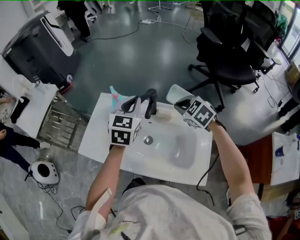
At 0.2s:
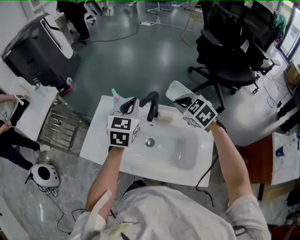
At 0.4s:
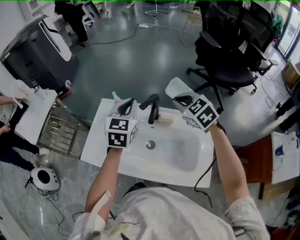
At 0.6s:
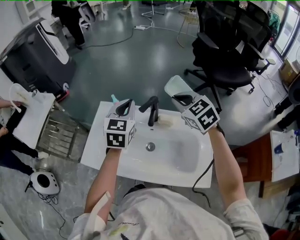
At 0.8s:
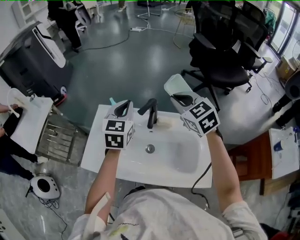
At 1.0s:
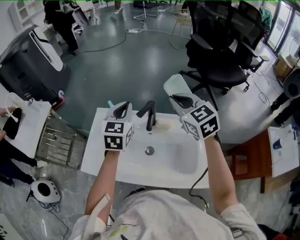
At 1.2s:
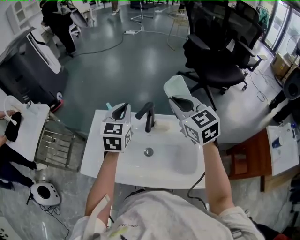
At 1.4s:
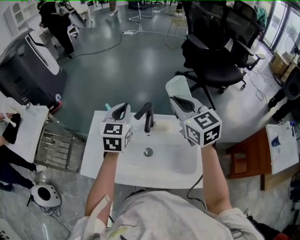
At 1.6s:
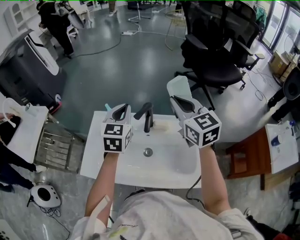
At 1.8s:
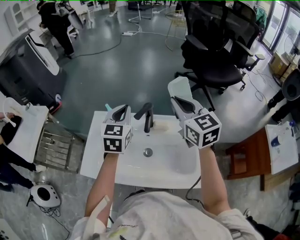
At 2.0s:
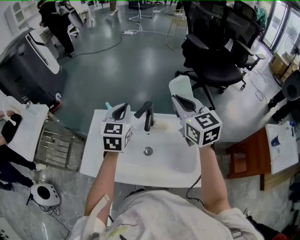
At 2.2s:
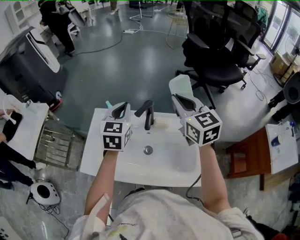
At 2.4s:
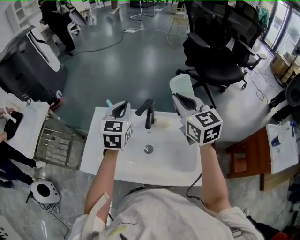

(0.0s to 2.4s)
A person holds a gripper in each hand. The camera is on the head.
0.0s - 1.2s: The right gripper goes roughly 15 cm upward, and points its fingers about 30 degrees further upward. The left gripper moves some 5 cm.
1.2s - 2.4s: The grippers stay close to where they were, moving slightly.

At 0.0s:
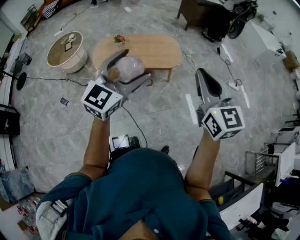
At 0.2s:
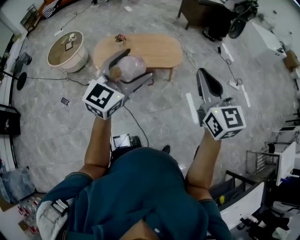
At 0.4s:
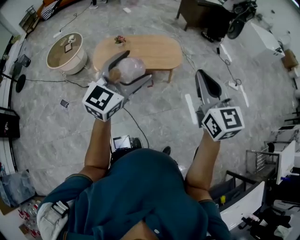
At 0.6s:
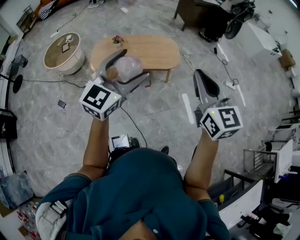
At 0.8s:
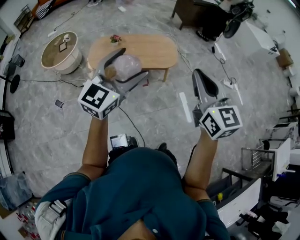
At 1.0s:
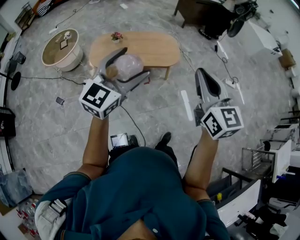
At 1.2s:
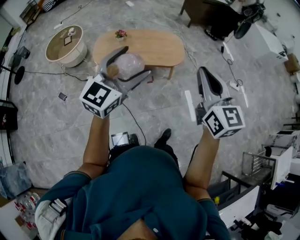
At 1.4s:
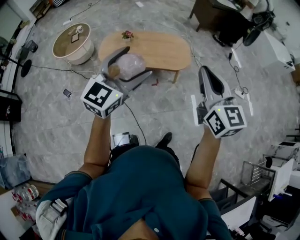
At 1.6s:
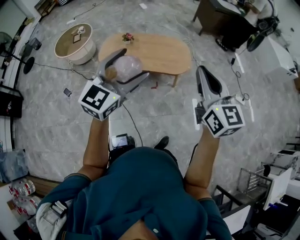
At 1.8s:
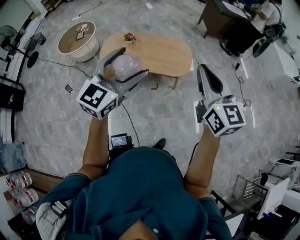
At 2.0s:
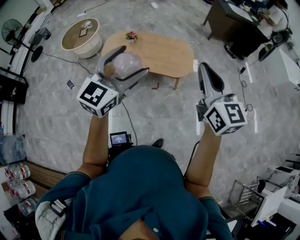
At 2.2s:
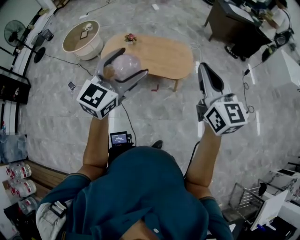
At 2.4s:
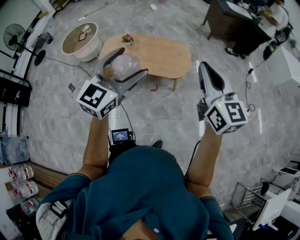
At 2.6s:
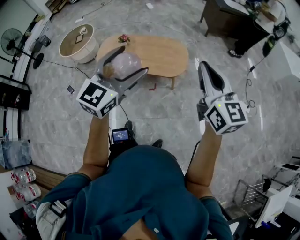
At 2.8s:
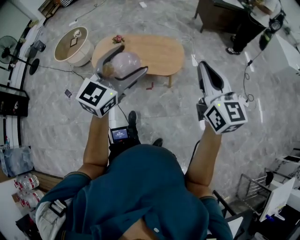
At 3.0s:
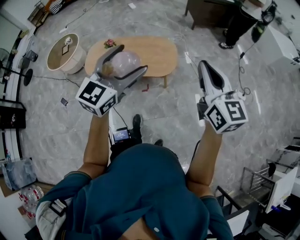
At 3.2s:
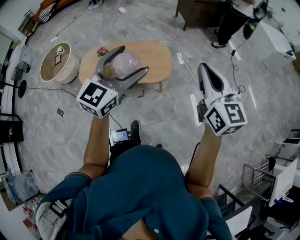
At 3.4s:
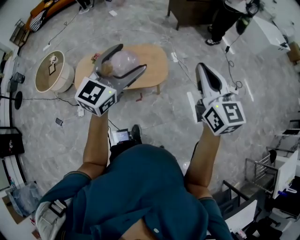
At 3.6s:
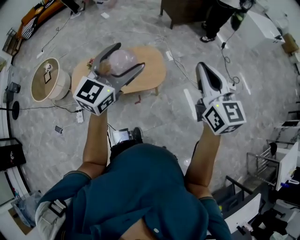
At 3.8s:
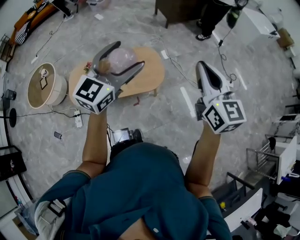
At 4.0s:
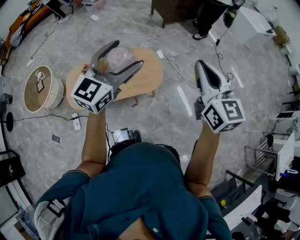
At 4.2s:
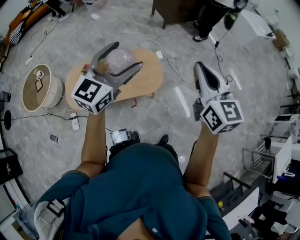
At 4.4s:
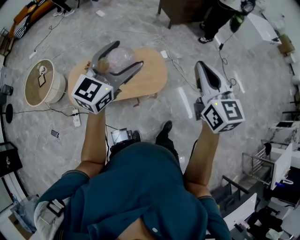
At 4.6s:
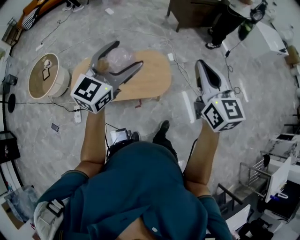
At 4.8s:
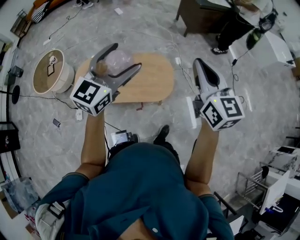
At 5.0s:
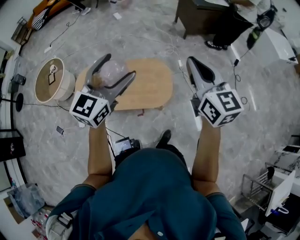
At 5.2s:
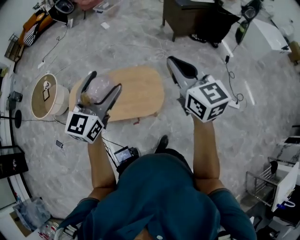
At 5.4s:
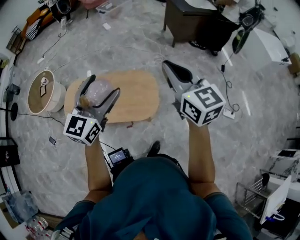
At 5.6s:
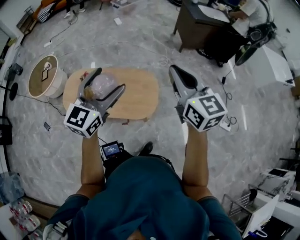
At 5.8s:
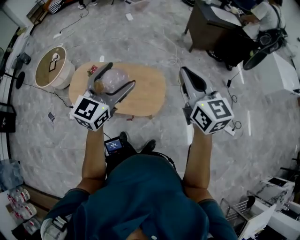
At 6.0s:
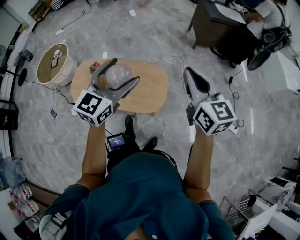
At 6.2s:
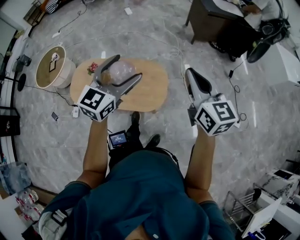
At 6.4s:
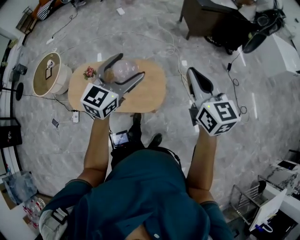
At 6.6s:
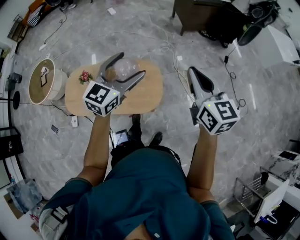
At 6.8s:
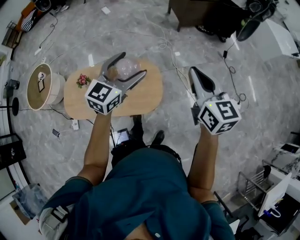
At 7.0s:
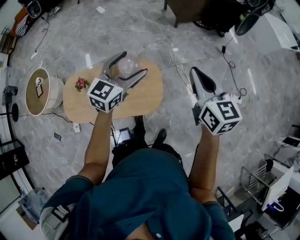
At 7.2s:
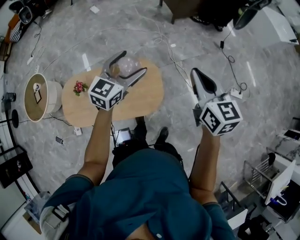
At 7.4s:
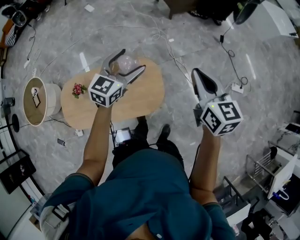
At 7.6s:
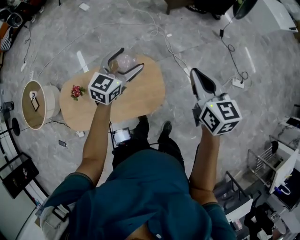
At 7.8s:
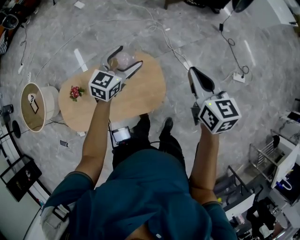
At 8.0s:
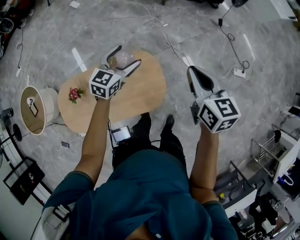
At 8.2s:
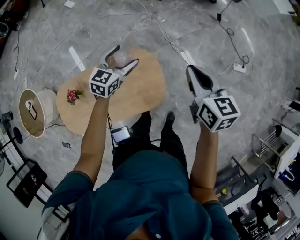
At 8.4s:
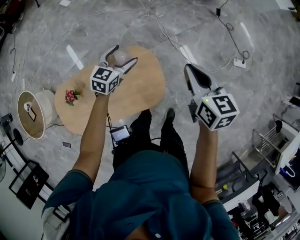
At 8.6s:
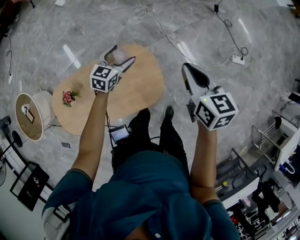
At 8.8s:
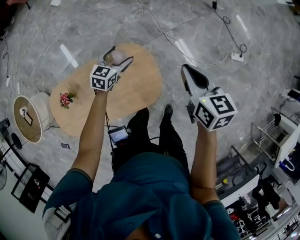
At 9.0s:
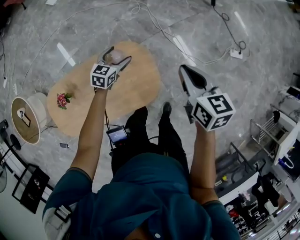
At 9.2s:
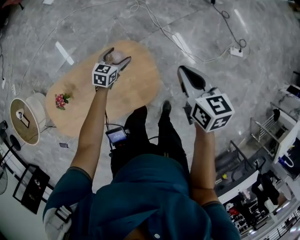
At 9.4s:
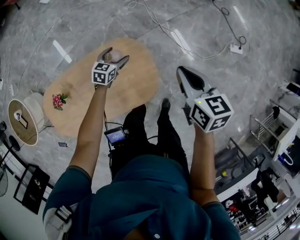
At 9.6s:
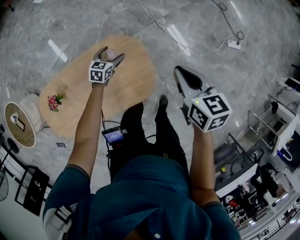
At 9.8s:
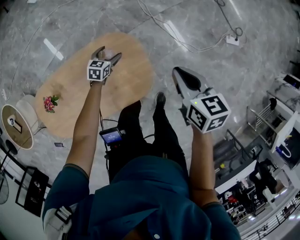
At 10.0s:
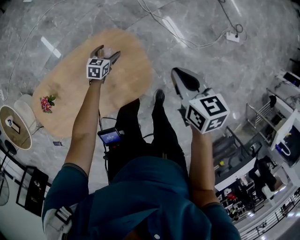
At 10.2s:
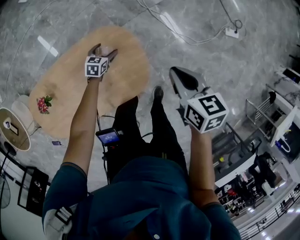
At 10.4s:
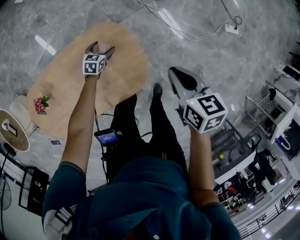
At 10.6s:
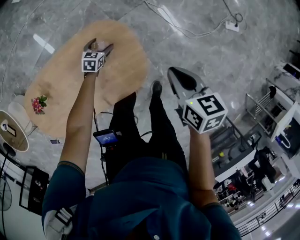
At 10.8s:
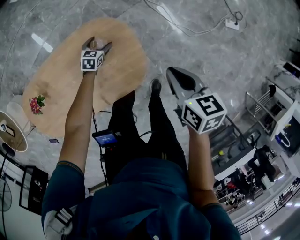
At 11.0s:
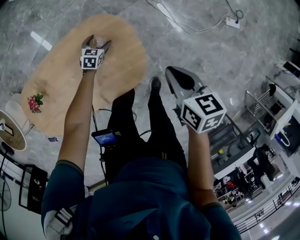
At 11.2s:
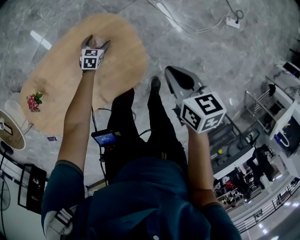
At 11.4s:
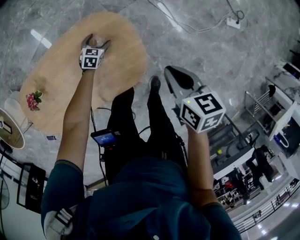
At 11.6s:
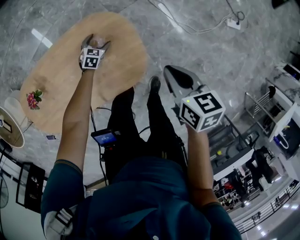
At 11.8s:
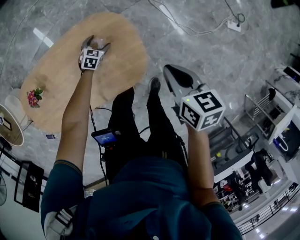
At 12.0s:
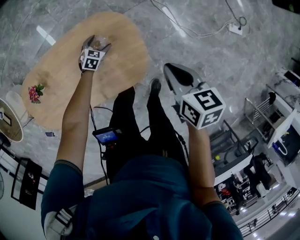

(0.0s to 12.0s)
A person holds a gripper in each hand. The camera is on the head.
0.0s - 1.6s: Both grippers travel together forward, approximately 10 cm.
1.6s - 3.0s: Both grippers move to the right and forward, roughly 20 cm.
3.0s - 4.4s: The grippers both shift forward and to the left by roughly 20 cm.
4.4s - 6.0s: Both grippers move forward and to the right, approximately 15 cm. The left gripper changes its angle by some 20 degrees. Meanwhile the right gripper rotates some 20 degrees.
6.0s - 7.6s: The left gripper travels forward and downward by roughly 30 cm, and swivels about 30 degrees; the right gripper moves downward and forward, about 15 cm, and swivels some 30 degrees.
7.6s - 9.0s: The left gripper moves downward, about 25 cm, while the right gripper travels downward by roughly 15 cm.
9.0s - 10.4s: The left gripper heads downward, covering roughly 25 cm, while the right gripper goes approximately 15 cm downward.
10.4s - 12.0s: The grippers make only small movements.

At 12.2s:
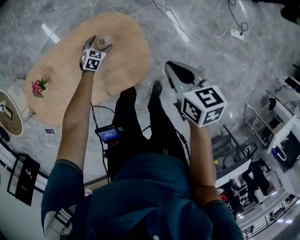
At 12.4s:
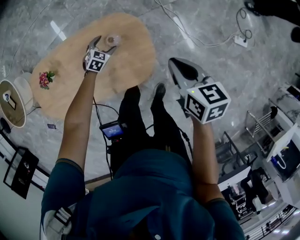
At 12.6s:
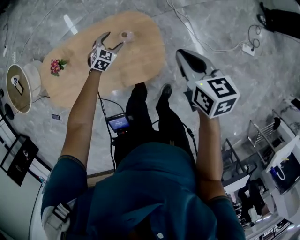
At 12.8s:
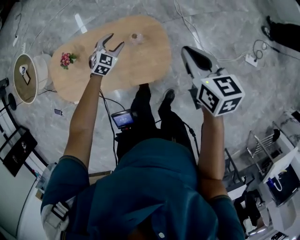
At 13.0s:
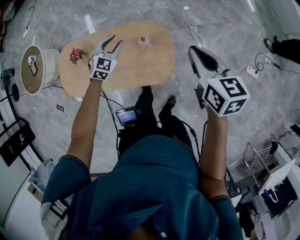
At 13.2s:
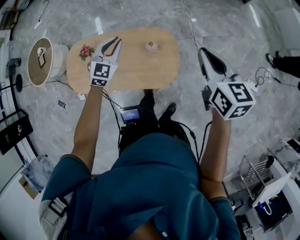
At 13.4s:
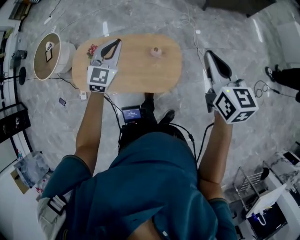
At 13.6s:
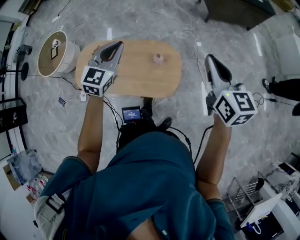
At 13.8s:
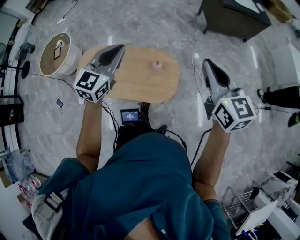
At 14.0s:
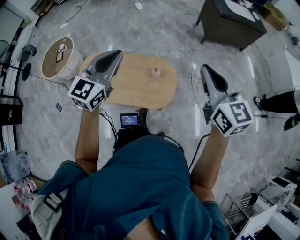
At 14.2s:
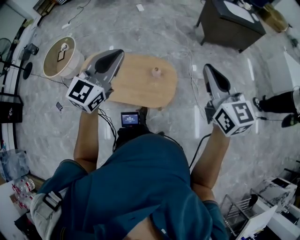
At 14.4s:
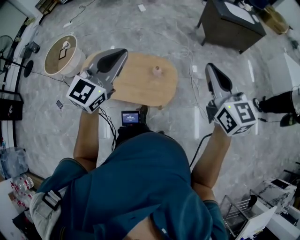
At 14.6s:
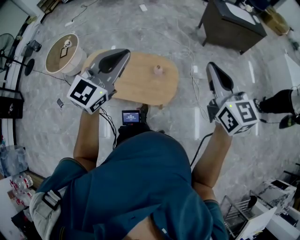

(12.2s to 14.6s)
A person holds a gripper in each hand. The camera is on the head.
12.2s - 13.4s: The right gripper travels upward by approximately 30 cm, and turns by approximately 30 degrees. The left gripper travels upward by approximately 50 cm, points its fingers approximately 40 degrees further upward, and closes.
13.4s - 14.6s: The left gripper travels upward and backward by about 30 cm, and rotates roughly 20 degrees. The right gripper heads upward and backward, covering some 20 cm, and rotates roughly 20 degrees.

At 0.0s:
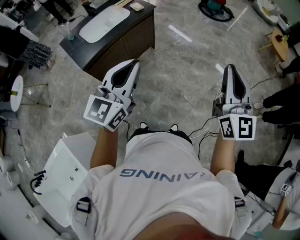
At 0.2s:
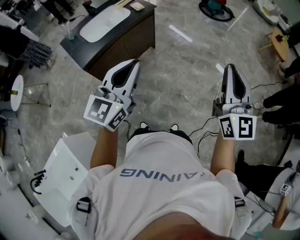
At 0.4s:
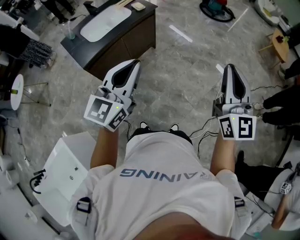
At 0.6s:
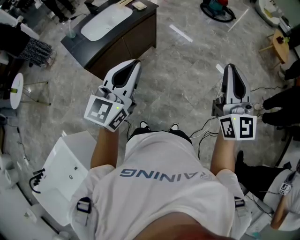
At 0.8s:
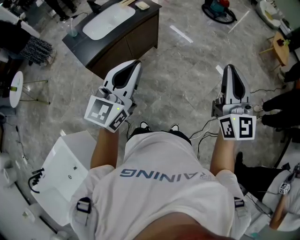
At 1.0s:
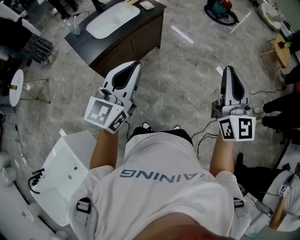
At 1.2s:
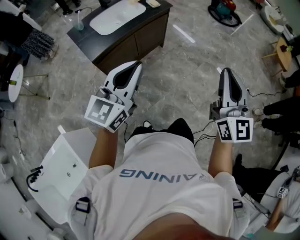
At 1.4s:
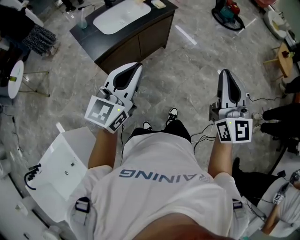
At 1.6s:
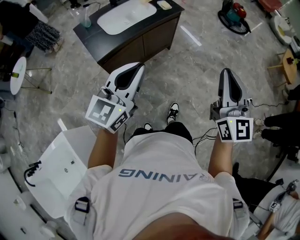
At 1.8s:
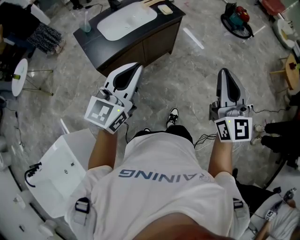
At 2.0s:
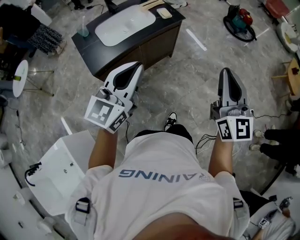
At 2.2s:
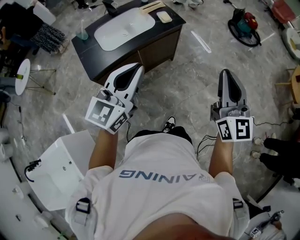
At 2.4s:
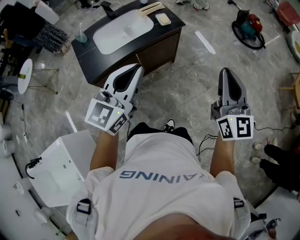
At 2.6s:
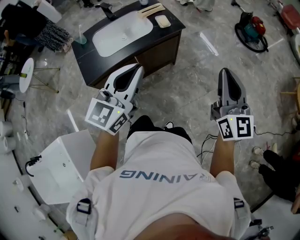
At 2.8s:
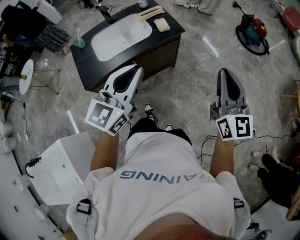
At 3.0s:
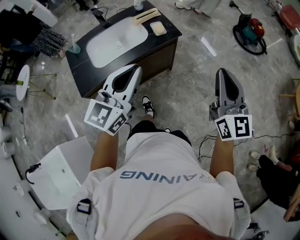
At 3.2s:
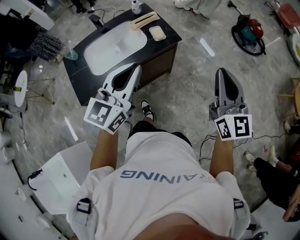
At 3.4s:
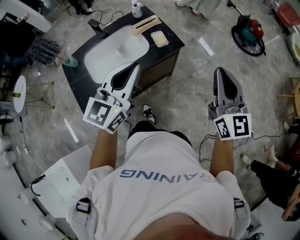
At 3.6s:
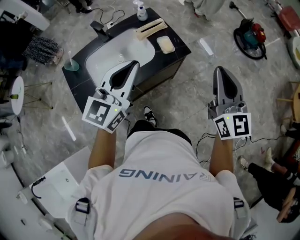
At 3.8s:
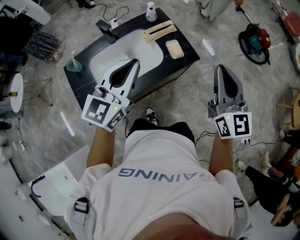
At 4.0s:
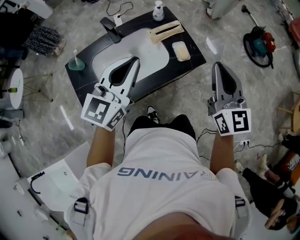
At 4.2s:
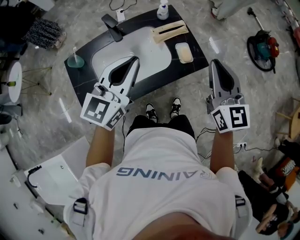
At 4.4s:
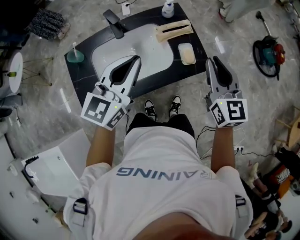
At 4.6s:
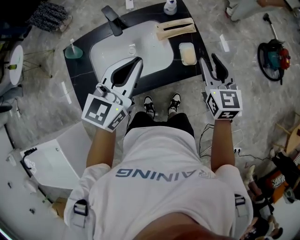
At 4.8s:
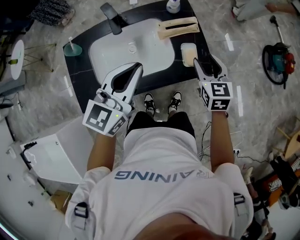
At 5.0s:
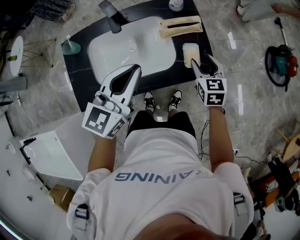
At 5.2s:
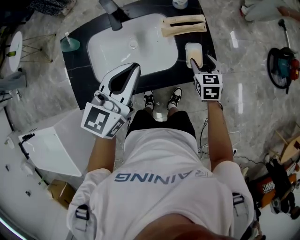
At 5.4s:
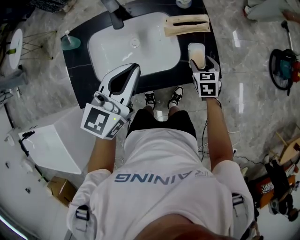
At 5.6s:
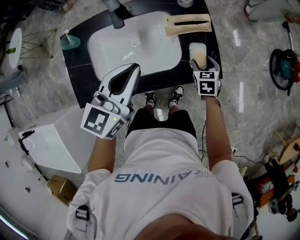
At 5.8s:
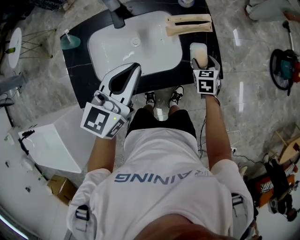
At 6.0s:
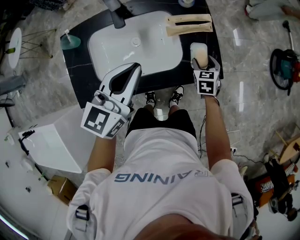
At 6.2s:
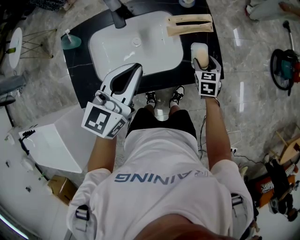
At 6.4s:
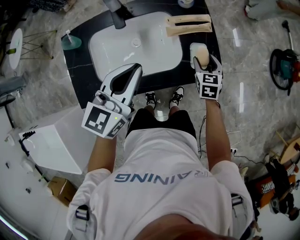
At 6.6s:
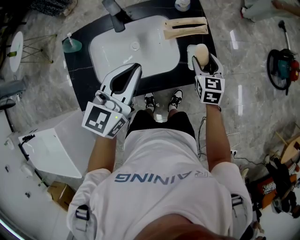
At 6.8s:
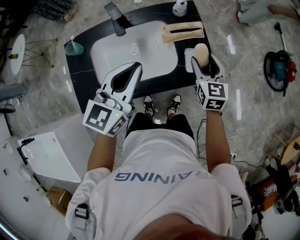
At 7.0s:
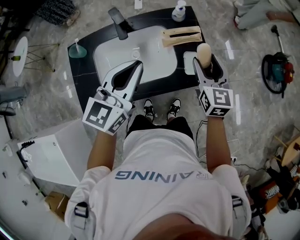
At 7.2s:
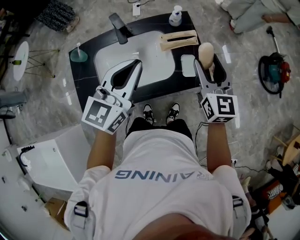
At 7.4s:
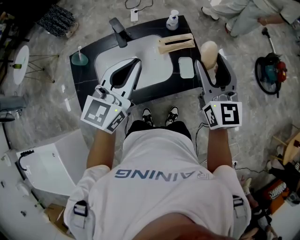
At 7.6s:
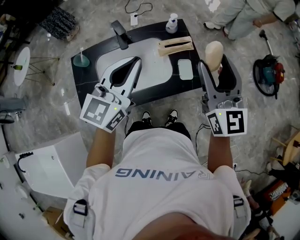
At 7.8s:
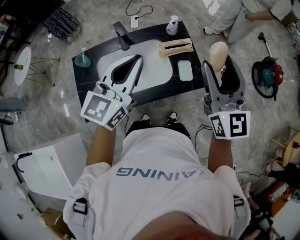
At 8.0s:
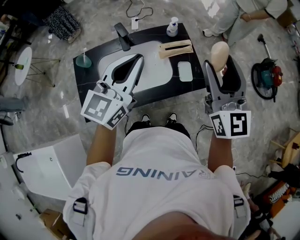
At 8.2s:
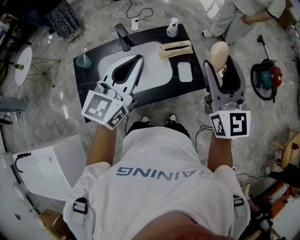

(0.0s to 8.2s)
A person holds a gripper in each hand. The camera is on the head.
0.0s - 1.6s: Both grippers travel together to the left, approximately 15 cm.
1.6s - 3.2s: The grippers both shift forward by about 35 cm.
3.2s - 5.0s: The left gripper heads forward, to the left and downward, covering some 30 cm, and turns by some 20 degrees. Meanwhile the right gripper moves forward, downward and to the left, about 50 cm, tips its fingers downward by approximately 40 degrees, and opens its fingers.
5.0s - 6.6s: The right gripper reaches some 10 cm downward, then returns.
6.6s - 8.2s: The right gripper goes some 35 cm upward, and angles its fingers upward, by roughly 40 degrees; the left gripper is displaced upward by about 15 cm.
